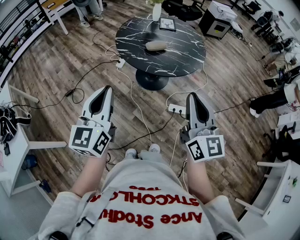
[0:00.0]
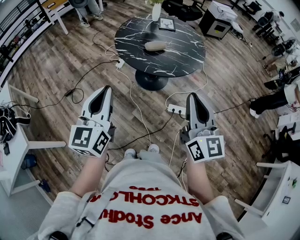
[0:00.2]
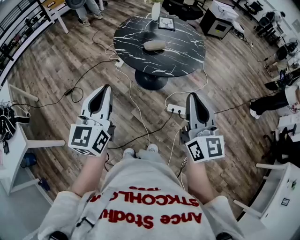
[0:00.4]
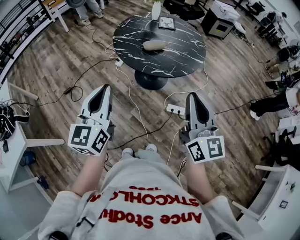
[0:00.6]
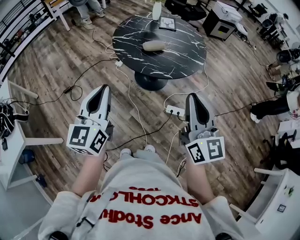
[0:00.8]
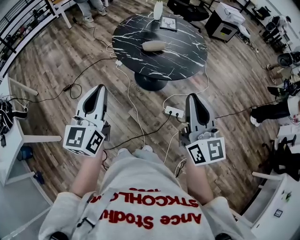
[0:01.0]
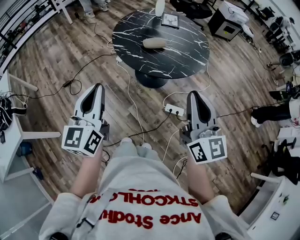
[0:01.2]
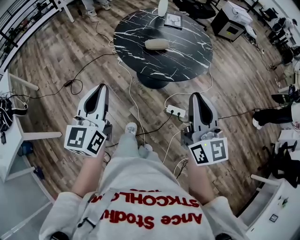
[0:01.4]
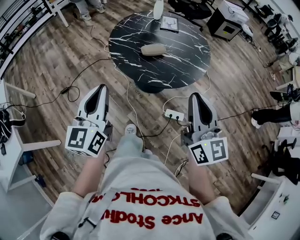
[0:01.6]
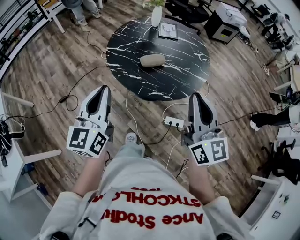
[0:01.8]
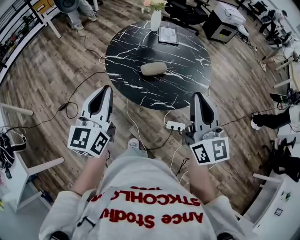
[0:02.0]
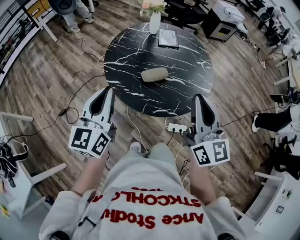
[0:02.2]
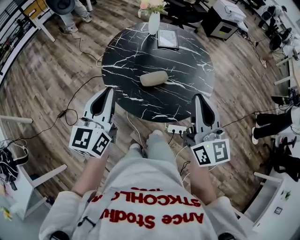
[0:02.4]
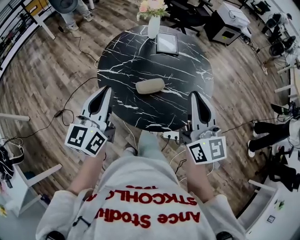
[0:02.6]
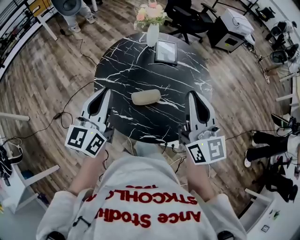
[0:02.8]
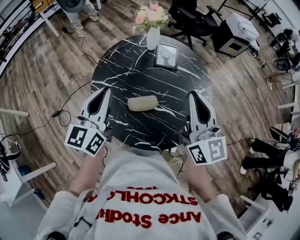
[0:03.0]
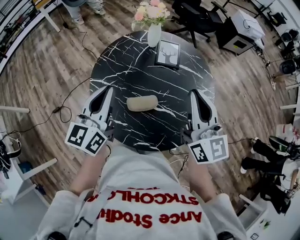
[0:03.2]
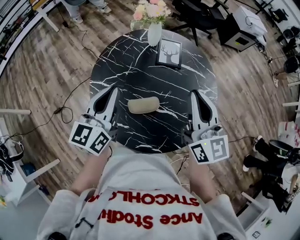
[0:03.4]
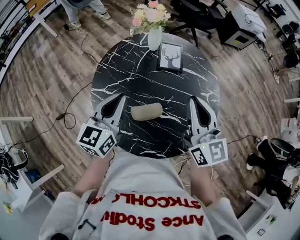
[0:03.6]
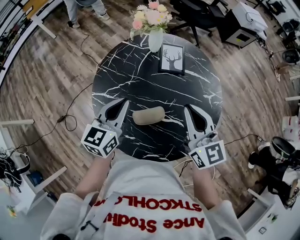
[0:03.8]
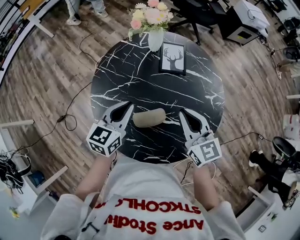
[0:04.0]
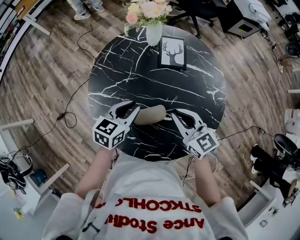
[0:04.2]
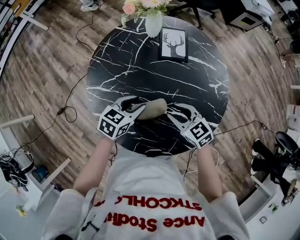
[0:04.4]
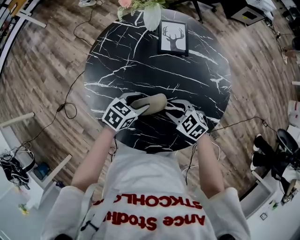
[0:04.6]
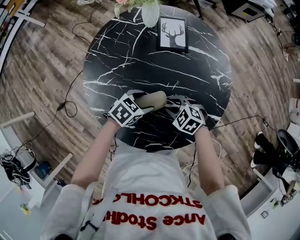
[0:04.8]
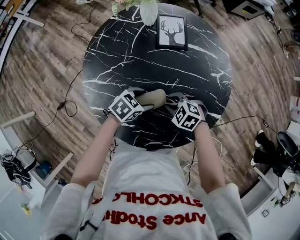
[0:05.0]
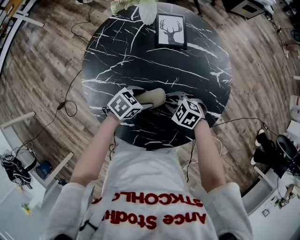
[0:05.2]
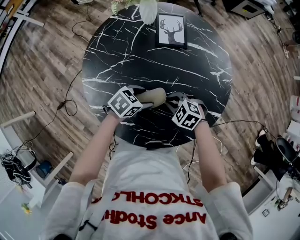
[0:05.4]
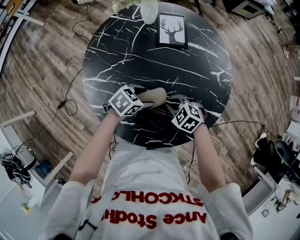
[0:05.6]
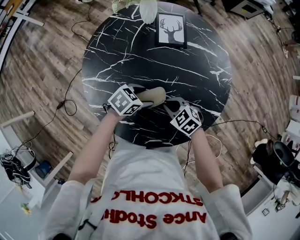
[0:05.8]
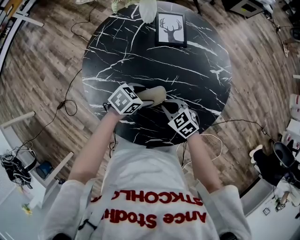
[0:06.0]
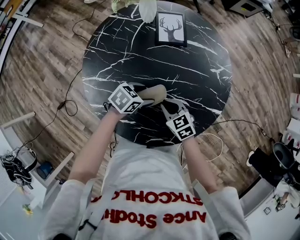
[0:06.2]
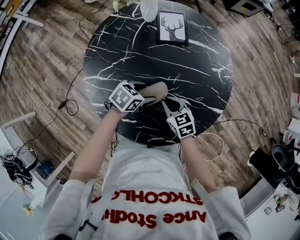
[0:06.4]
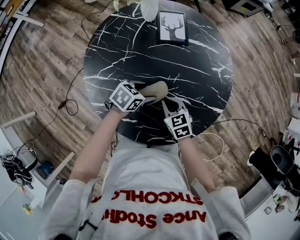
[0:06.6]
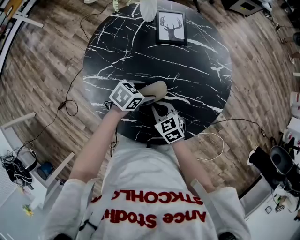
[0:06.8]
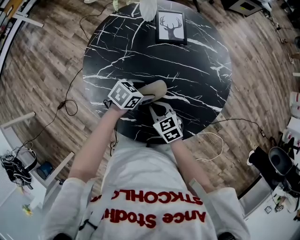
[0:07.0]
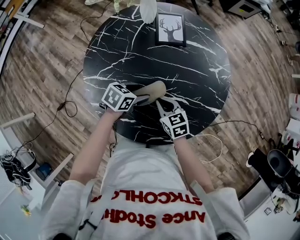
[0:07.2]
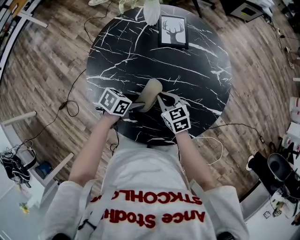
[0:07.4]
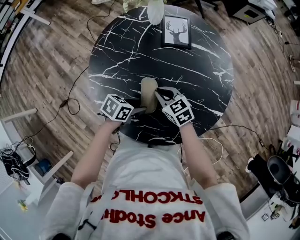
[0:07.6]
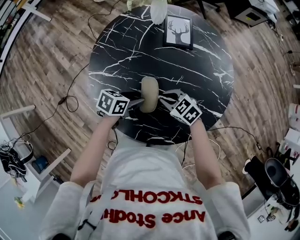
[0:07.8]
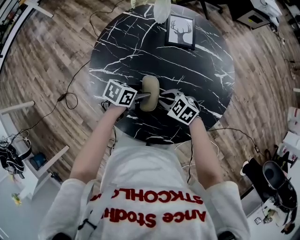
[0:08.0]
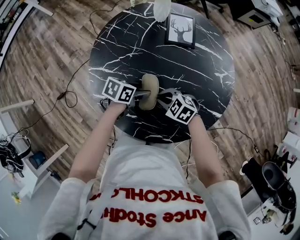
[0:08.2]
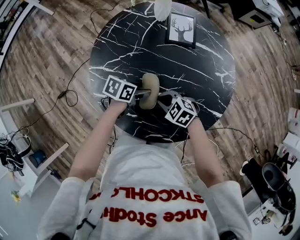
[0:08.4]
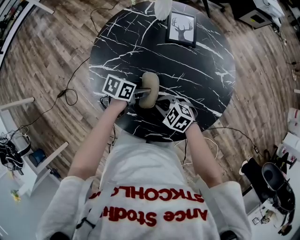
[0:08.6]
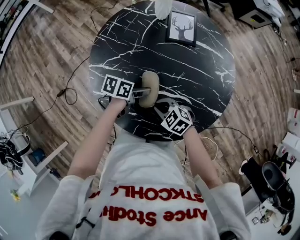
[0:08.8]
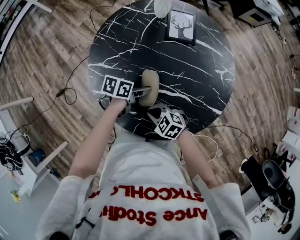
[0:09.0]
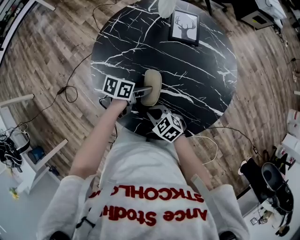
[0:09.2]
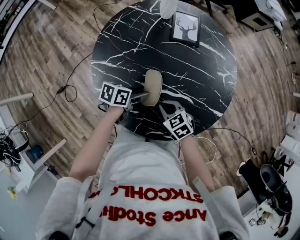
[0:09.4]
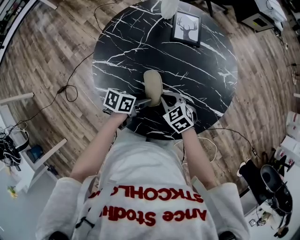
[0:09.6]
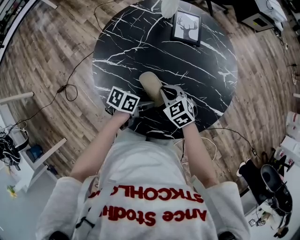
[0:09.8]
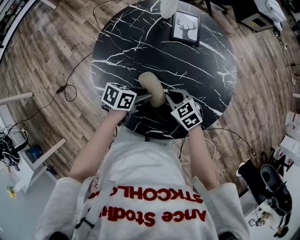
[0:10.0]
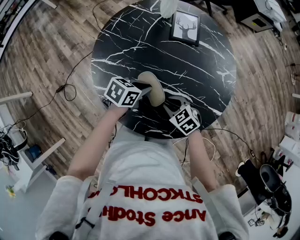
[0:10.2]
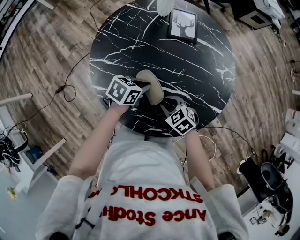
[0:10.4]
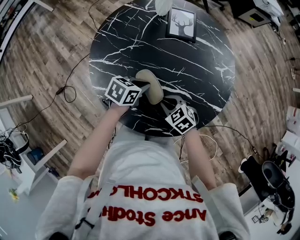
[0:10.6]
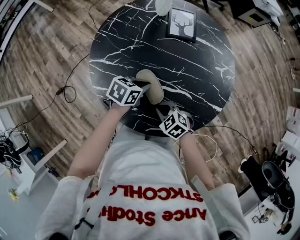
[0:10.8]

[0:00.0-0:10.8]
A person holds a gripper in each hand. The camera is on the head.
0:00.0 to 0:01.6: The right gripper moves forward and to the right, about 15 cm. Meanwhile the left gripper heads forward, covering approximately 15 cm.
0:01.6 to 0:03.0: Both grippers move forward, roughly 40 cm.
0:03.0 to 0:04.6: The two grippers go about 35 cm downward. The left gripper tilts its fingers about 40 degrees downward, and opens. Meanwhile the right gripper angles its fingers downward, by roughly 50 degrees, and opens.
0:04.6 to 0:06.2: The right gripper turns by some 20 degrees, and closes up. The left gripper opens up.
0:06.2 to 0:07.8: The right gripper turns by roughly 20 degrees. The left gripper moves about 5 cm, and rotates roughly 20 degrees.
0:07.8 to 0:09.2: The right gripper moves about 10 cm.
0:09.2 to 0:10.8: The left gripper swivels some 20 degrees, and closes up.

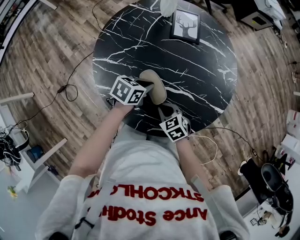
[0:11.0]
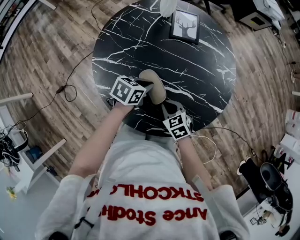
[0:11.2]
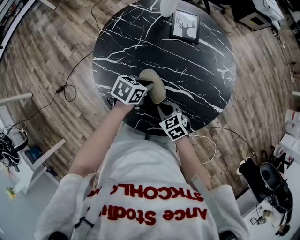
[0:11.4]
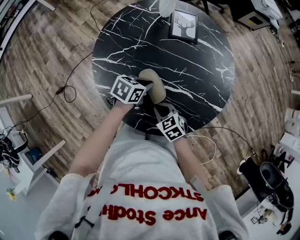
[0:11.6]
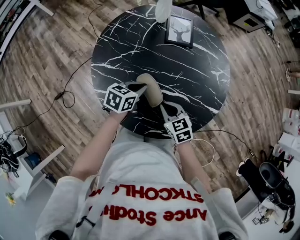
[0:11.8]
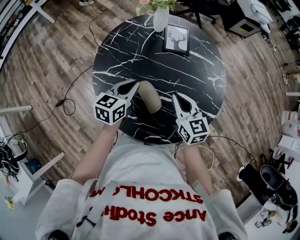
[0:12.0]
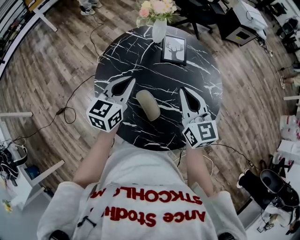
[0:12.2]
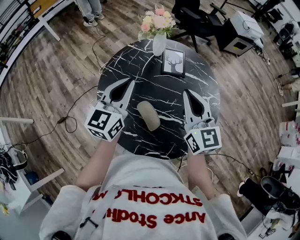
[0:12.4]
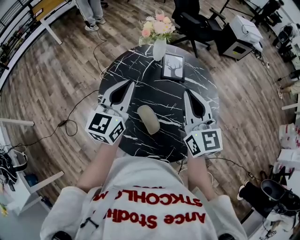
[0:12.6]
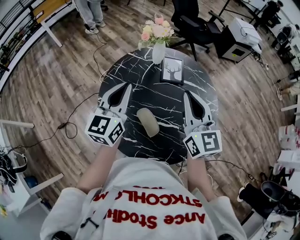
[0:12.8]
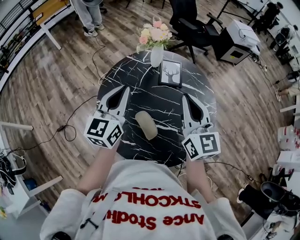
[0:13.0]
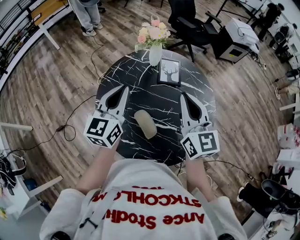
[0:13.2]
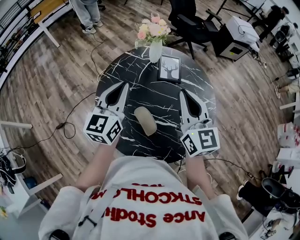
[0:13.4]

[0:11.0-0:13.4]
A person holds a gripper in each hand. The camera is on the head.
0:11.0 to 0:12.2: The left gripper is displaced upward by some 20 cm, and angles its fingers upward, by some 30 degrees; the right gripper heads upward and forward, covering approximately 30 cm, and angles its fingers upward, by roughly 40 degrees.
0:12.2 to 0:13.4: Both grippers travel together upward, some 10 cm.

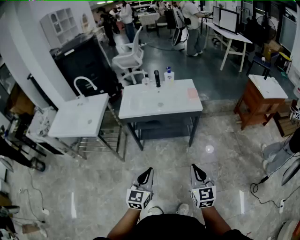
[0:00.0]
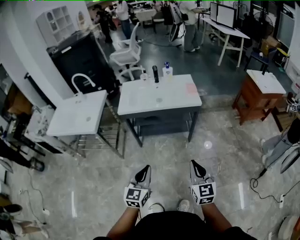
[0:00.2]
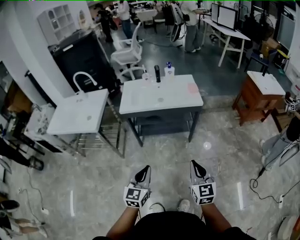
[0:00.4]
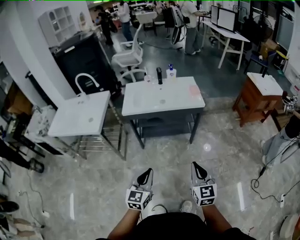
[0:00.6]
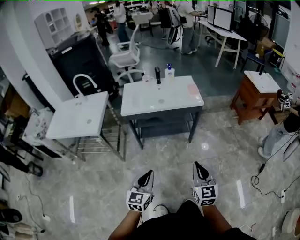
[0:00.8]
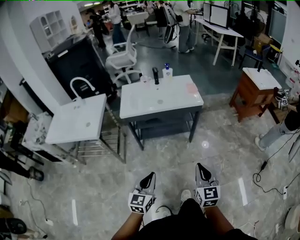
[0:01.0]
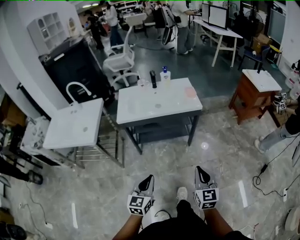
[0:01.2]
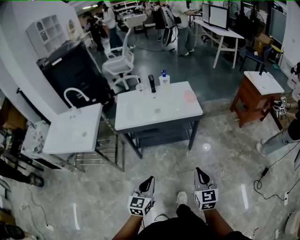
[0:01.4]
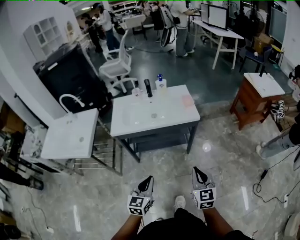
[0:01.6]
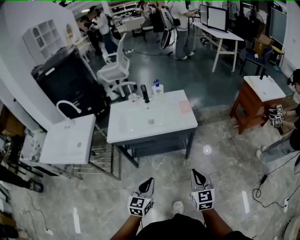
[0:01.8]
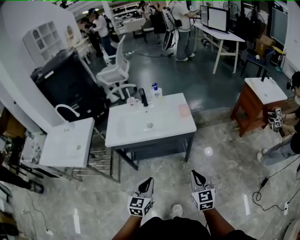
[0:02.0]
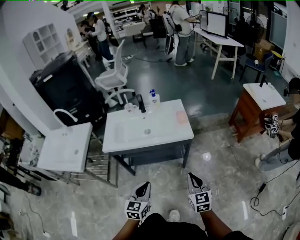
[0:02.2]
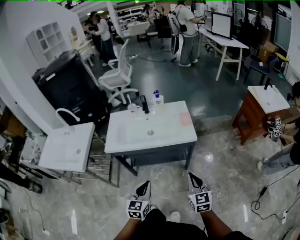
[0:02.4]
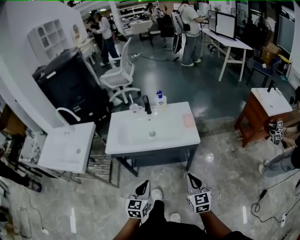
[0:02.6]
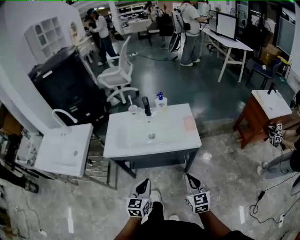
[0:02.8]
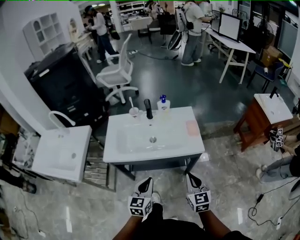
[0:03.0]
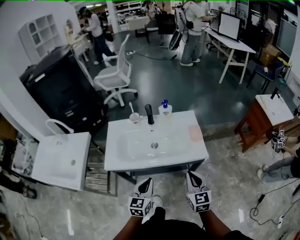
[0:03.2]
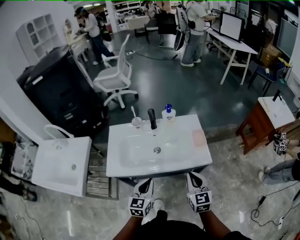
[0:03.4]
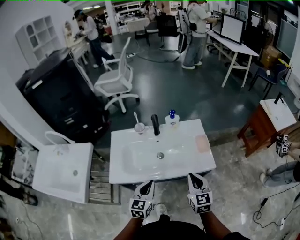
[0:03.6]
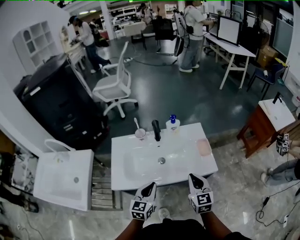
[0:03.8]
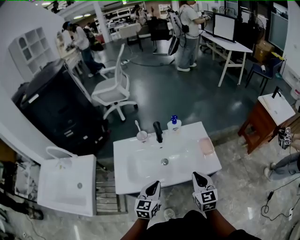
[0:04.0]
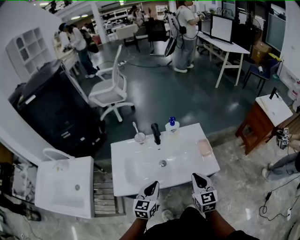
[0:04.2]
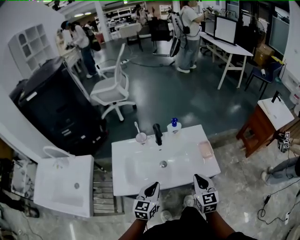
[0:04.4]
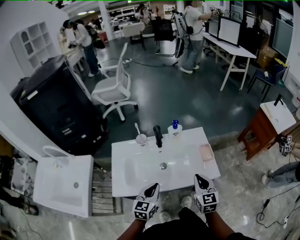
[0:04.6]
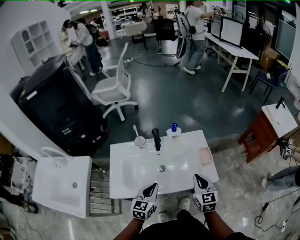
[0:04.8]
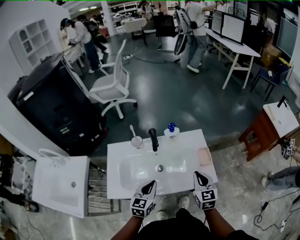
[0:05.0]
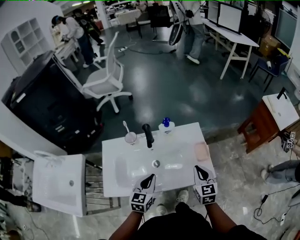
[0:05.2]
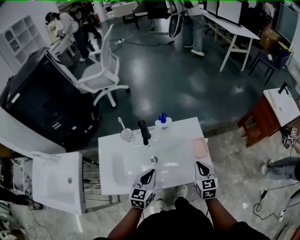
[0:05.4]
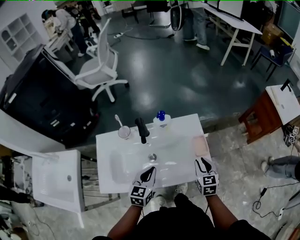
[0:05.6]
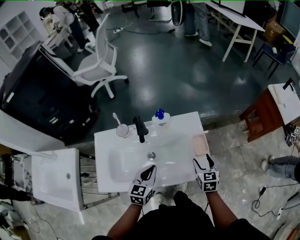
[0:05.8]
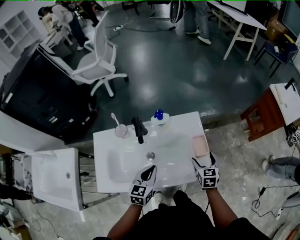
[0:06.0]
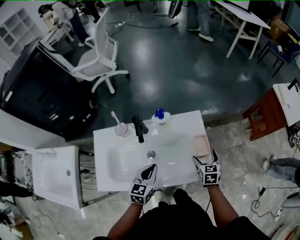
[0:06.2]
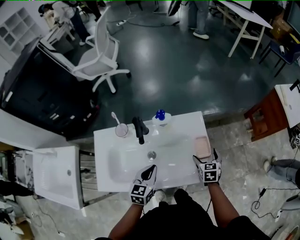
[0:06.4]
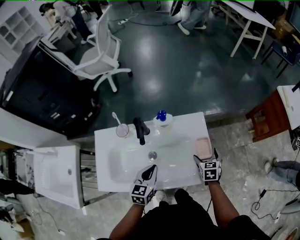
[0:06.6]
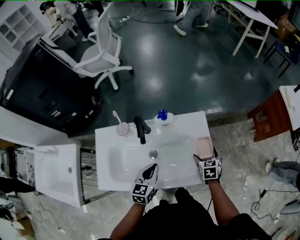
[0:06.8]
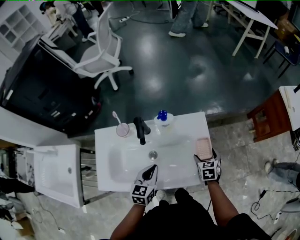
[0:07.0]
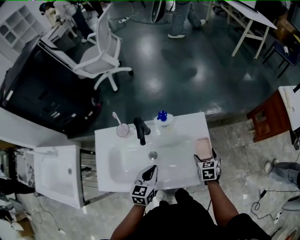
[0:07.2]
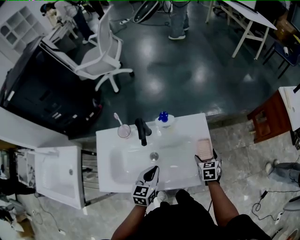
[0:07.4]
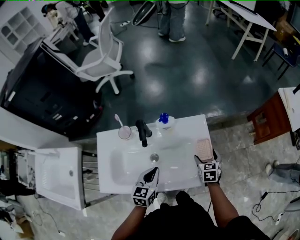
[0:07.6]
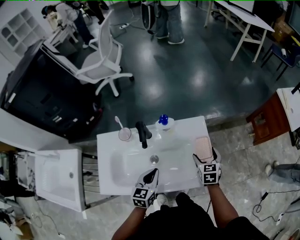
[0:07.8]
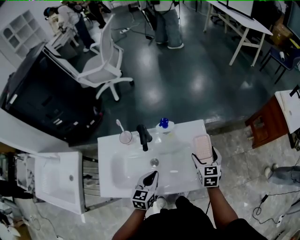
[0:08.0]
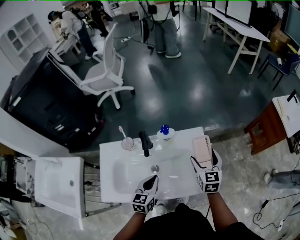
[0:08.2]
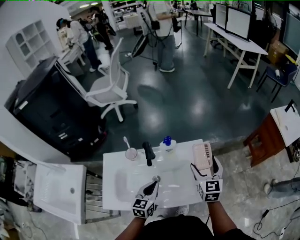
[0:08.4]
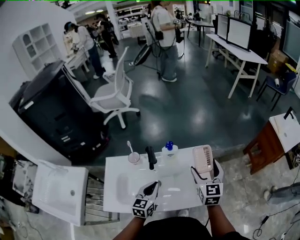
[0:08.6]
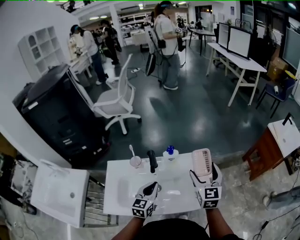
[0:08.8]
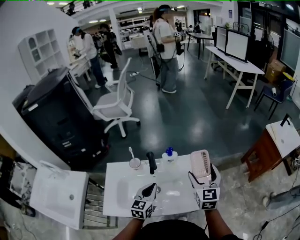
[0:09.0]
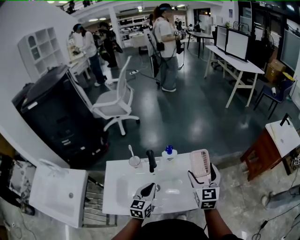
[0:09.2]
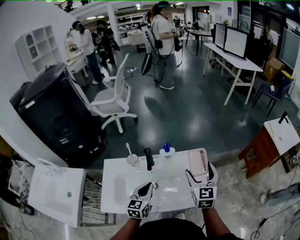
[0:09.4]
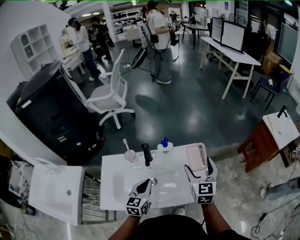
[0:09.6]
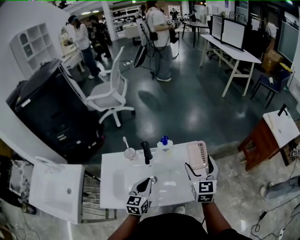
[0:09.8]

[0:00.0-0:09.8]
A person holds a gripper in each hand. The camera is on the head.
0:00.0 to 0:01.4: Both grippers move forward, some 5 cm.
0:01.4 to 0:02.8: The two grippers go some 20 cm forward.
0:02.8 to 0:04.2: The right gripper shifts roughly 20 cm forward and to the left, while the left gripper goes some 20 cm forward.
0:04.2 to 0:05.6: The left gripper is displaced forward by roughly 10 cm, while the right gripper is displaced forward, to the right and downward by some 20 cm.
0:05.6 to 0:07.0: The right gripper shifts some 10 cm downward and forward, and opens its fingers.
0:07.0 to 0:08.4: The right gripper heads upward, covering roughly 20 cm, and angles its fingers upward, by about 30 degrees.
0:08.4 to 0:09.8: The right gripper changes place by about 5 cm.
